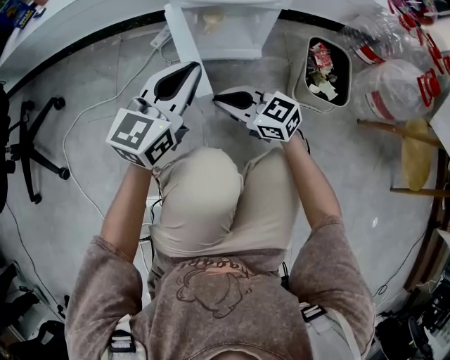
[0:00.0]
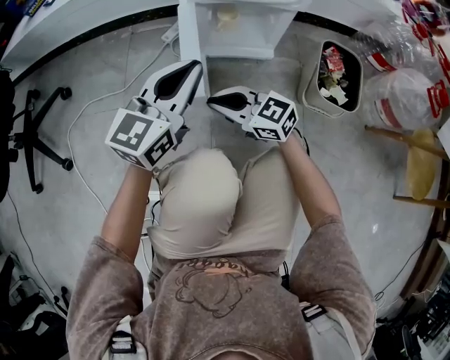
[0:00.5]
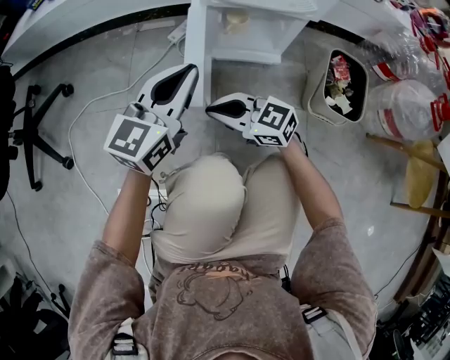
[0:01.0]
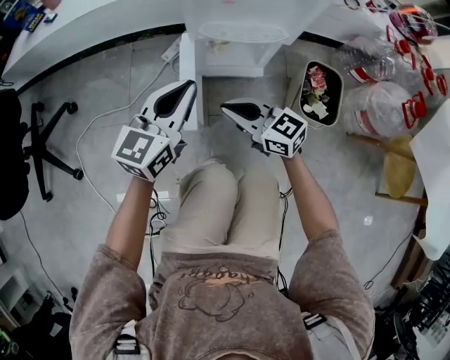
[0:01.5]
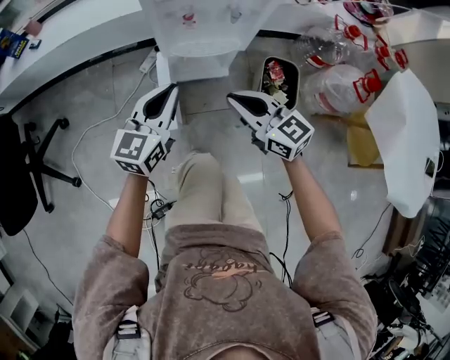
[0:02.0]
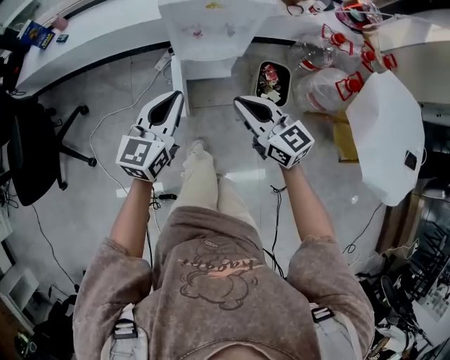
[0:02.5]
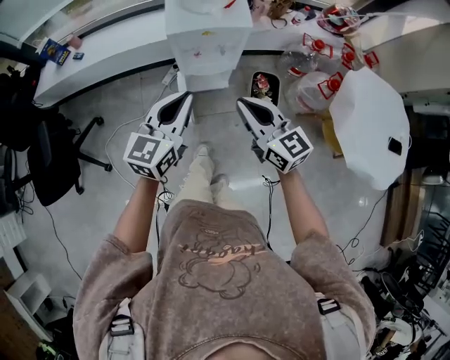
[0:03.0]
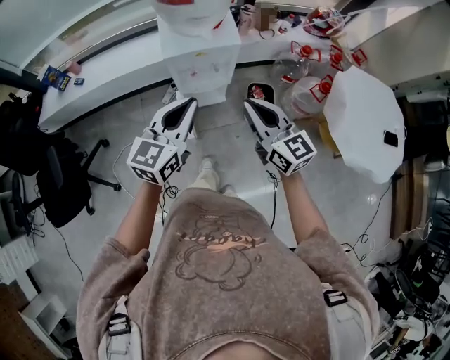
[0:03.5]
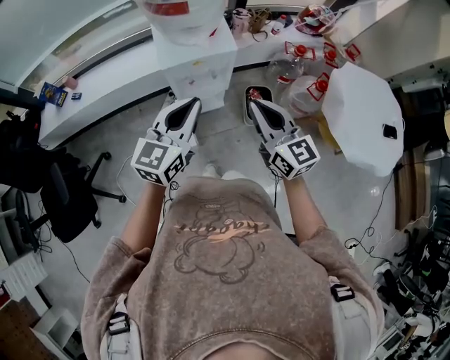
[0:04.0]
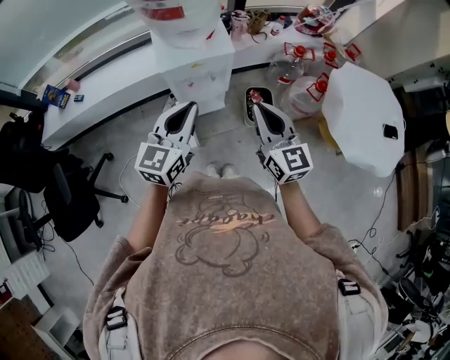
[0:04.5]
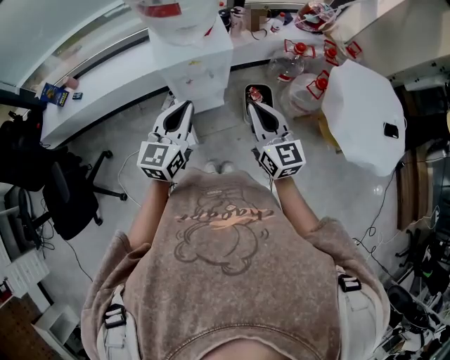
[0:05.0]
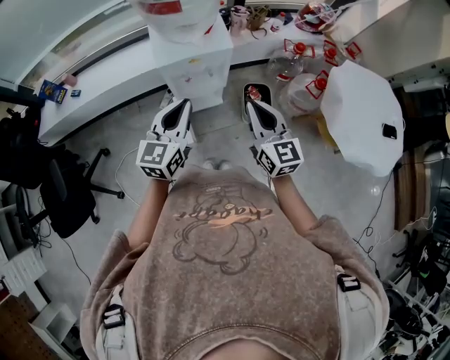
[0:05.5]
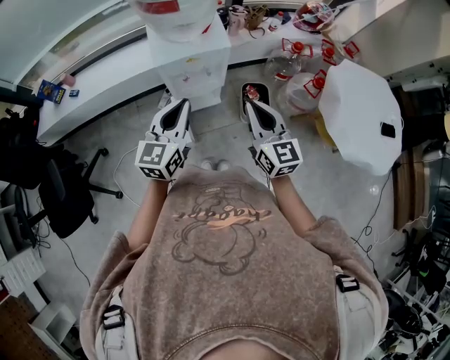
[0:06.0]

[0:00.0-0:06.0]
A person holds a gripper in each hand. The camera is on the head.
0:00.0 to 0:02.0: The right gripper is displaced upward by roughly 30 cm, and rotates roughly 20 degrees. The left gripper shifts some 15 cm upward.
0:02.0 to 0:04.0: Both grippers move upward, roughly 40 cm. The right gripper changes its angle by approximately 30 degrees.
0:04.0 to 0:06.0: The grippers stay close to where they were, moving slightly.

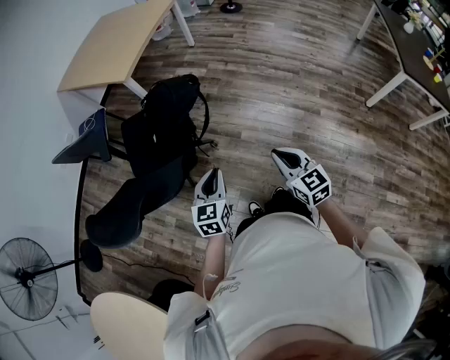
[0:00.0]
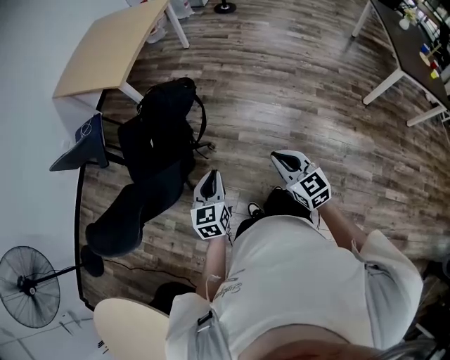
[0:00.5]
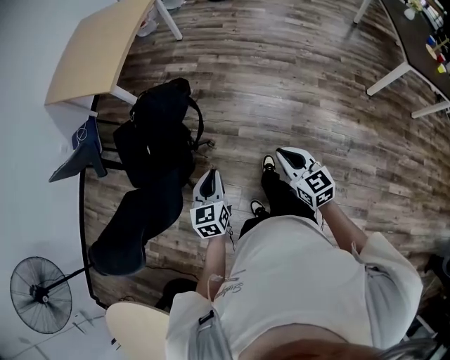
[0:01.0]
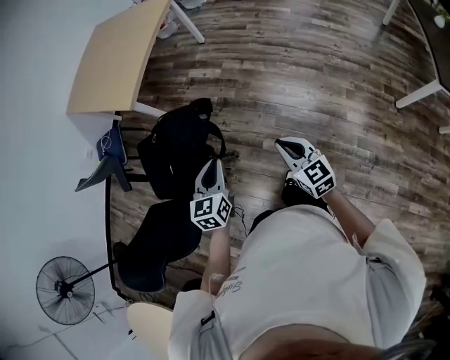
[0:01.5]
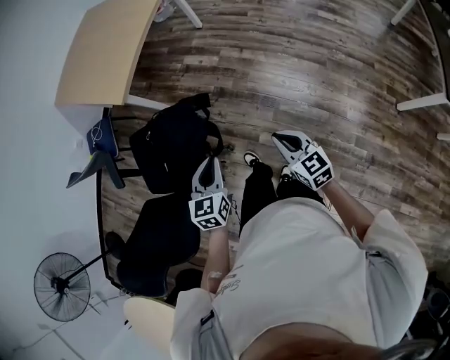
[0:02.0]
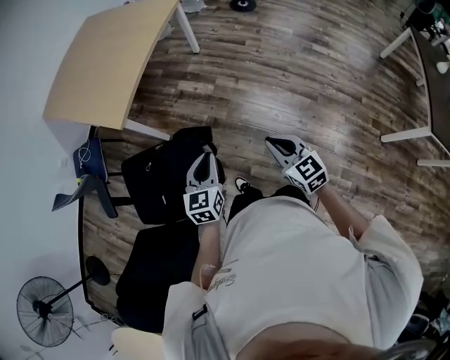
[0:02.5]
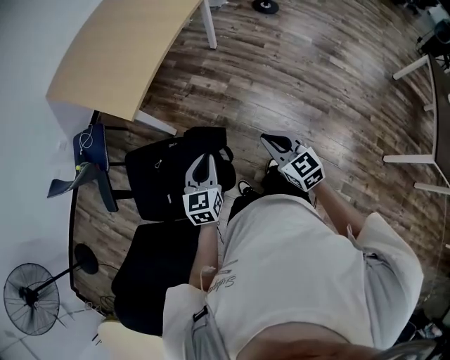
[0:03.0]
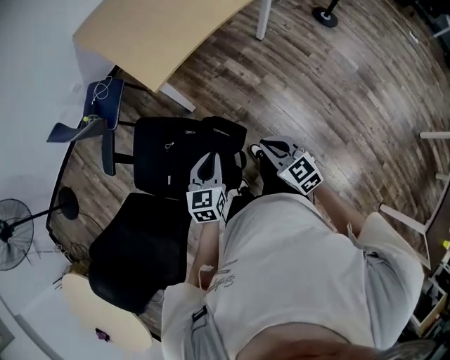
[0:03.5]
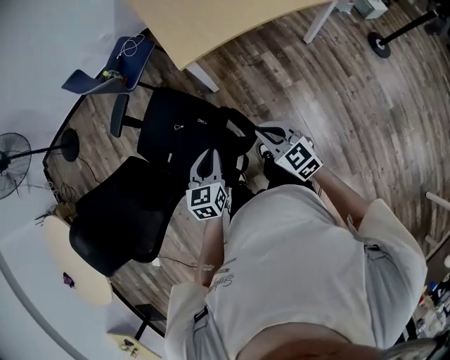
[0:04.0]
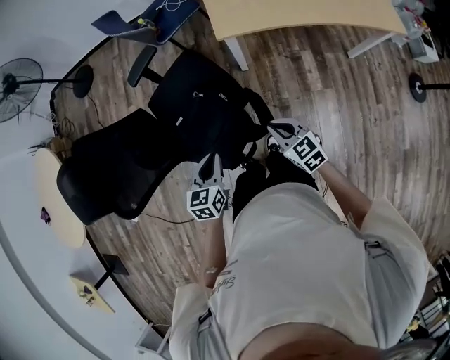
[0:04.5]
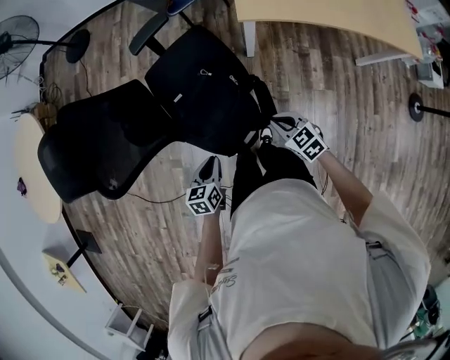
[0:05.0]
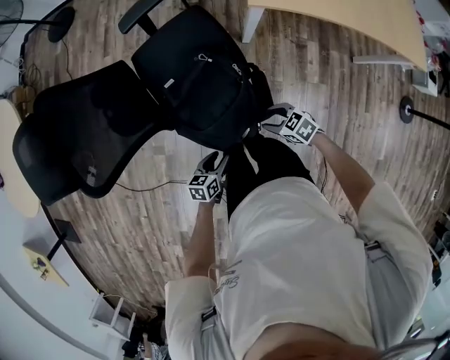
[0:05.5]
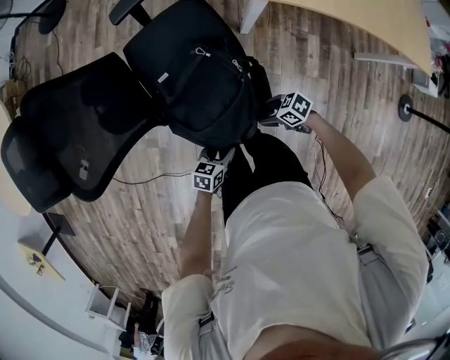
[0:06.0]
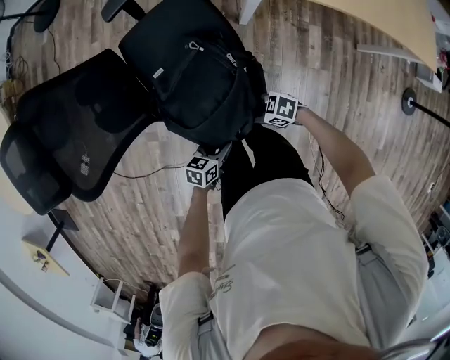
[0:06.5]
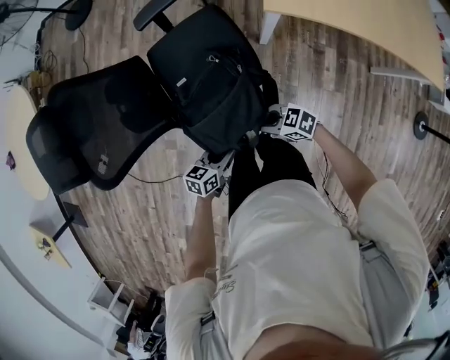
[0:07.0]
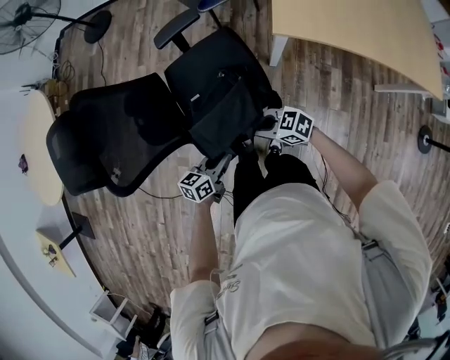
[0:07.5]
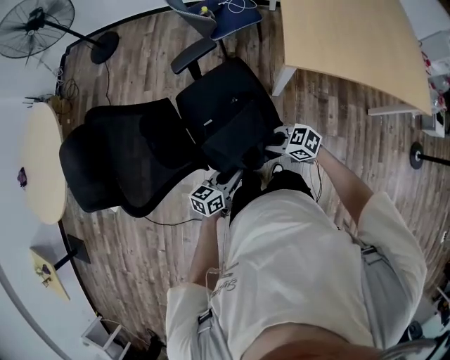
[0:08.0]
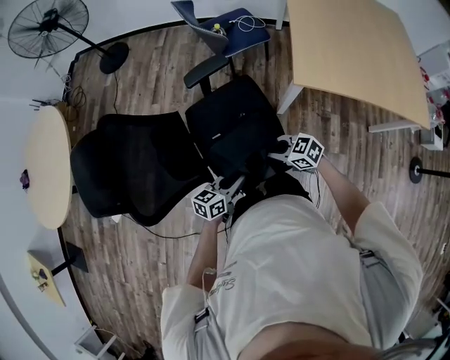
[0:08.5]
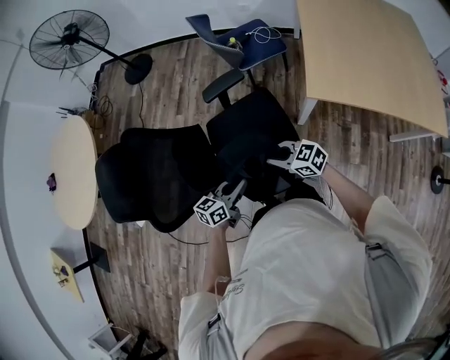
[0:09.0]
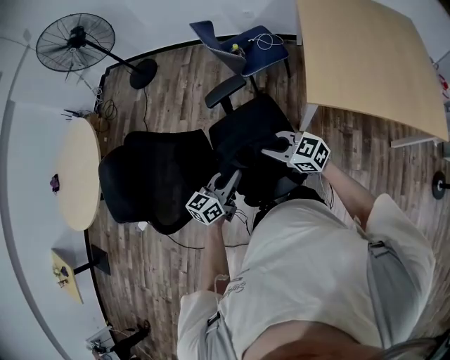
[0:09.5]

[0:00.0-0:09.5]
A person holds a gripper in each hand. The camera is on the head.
0:00.0 to 0:02.0: Both grippers travel together forward, about 35 cm.
0:02.0 to 0:04.0: The left gripper shifts by about 30 cm, and swivels approximately 40 degrees. Meanwhile the right gripper ends up approximately 50 cm from where it was, and rotates about 60 degrees.
0:04.0 to 0:05.5: The grippers both shift downward by about 20 cm. The left gripper changes its angle by roughly 40 degrees, and opens; the right gripper swivels some 50 degrees, and opens up.
0:05.5 to 0:07.5: The right gripper ends up some 15 cm from where it was, changes its angle by about 20 degrees, and closes up; the left gripper ends up about 15 cm from where it was, and closes its fingers.
0:07.5 to 0:09.5: Both grippers travel together upward, roughly 15 cm. The right gripper rotates about 20 degrees. Meanwhile the left gripper turns by approximately 20 degrees.

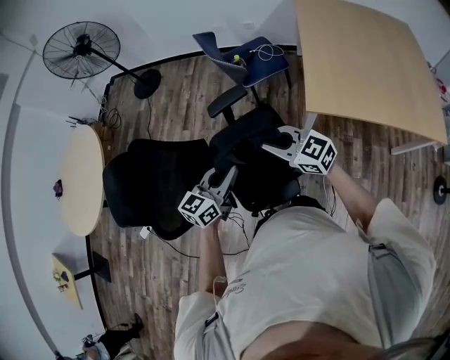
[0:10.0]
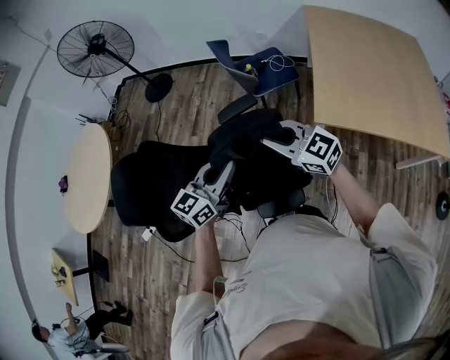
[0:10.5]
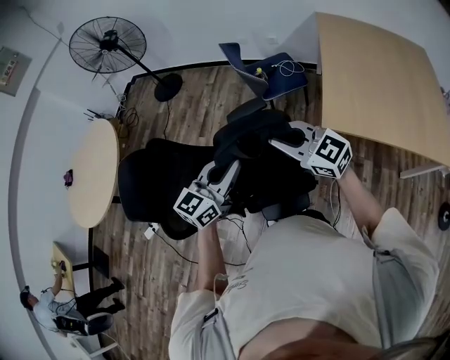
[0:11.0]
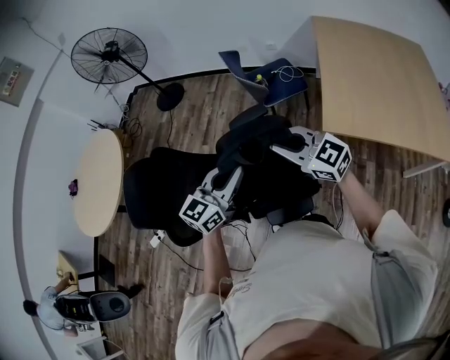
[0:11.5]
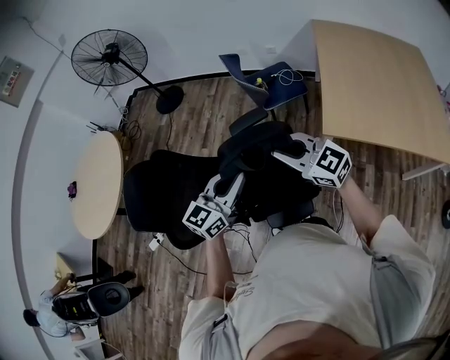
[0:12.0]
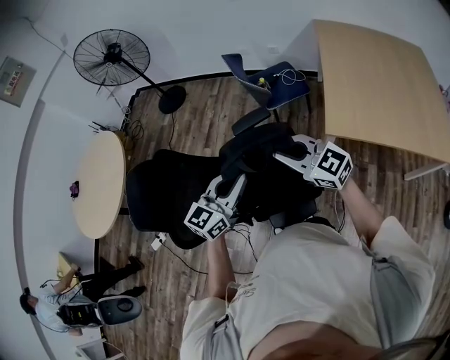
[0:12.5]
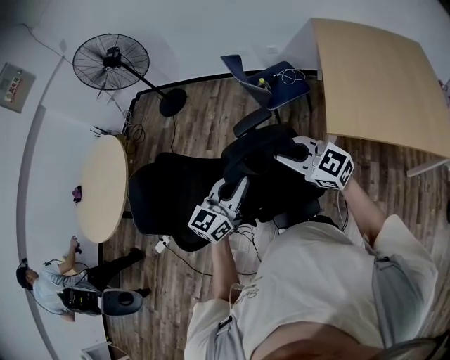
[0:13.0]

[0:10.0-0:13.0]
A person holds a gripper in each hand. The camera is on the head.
0:10.0 to 0:11.5: Both grippers move upward, approximately 10 cm.
0:11.5 to 0:13.0: The grippers make only small movements.

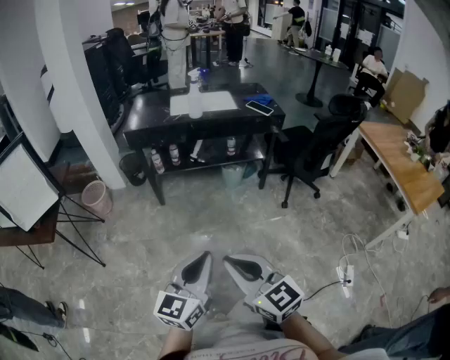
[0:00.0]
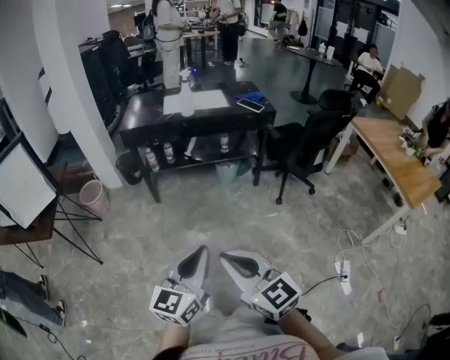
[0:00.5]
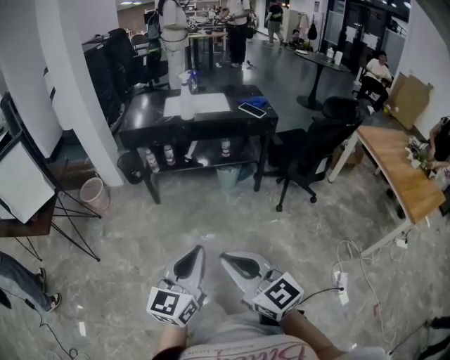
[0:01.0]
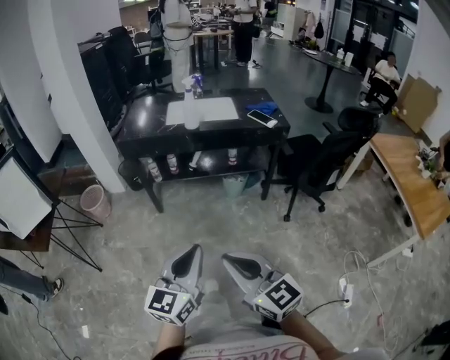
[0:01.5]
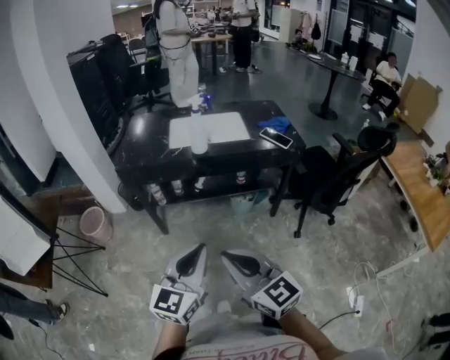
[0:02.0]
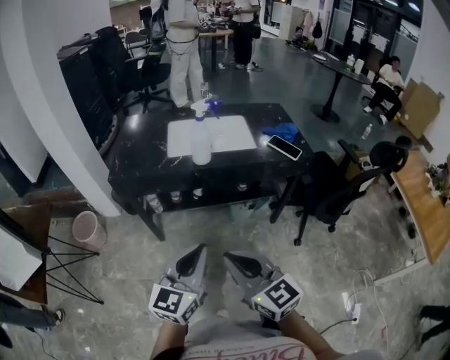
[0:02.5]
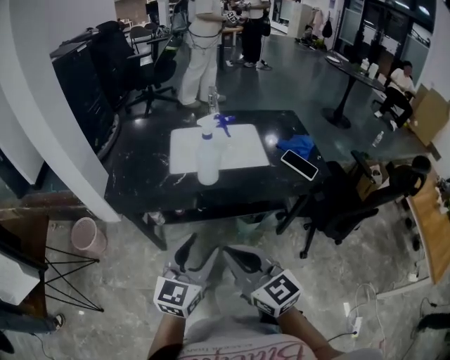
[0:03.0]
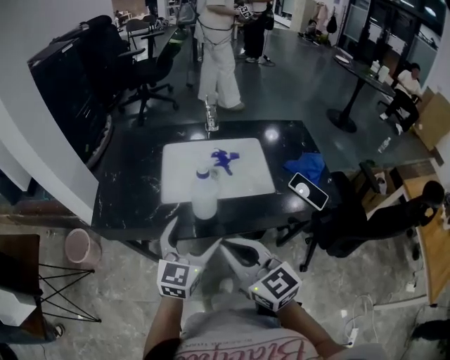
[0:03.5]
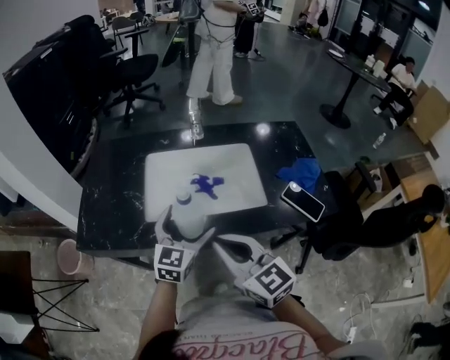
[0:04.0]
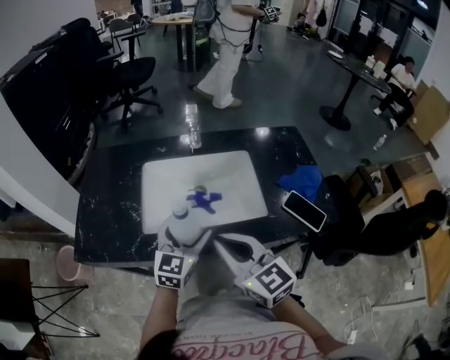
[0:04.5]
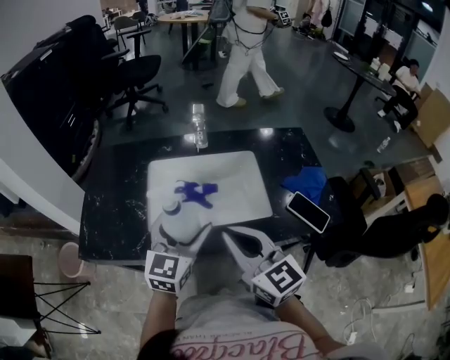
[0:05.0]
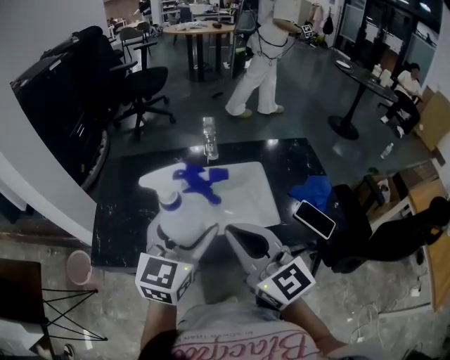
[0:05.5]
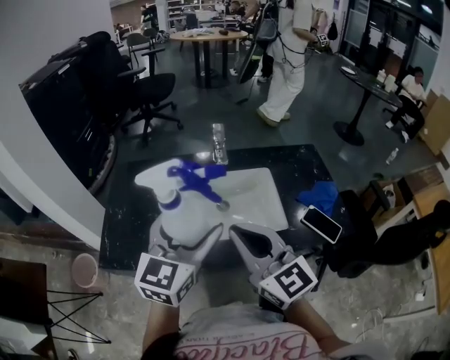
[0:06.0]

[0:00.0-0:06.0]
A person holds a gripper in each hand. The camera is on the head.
0:00.0 to 0:02.0: Both grippers move forward, about 25 cm.
0:02.0 to 0:04.0: The grippers both shift forward by about 40 cm. The left gripper opens its fingers.
0:04.0 to 0:06.0: The left gripper goes approximately 15 cm upward, while the right gripper heads upward and forward, covering some 10 cm.

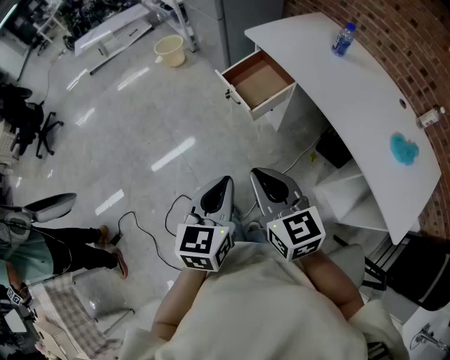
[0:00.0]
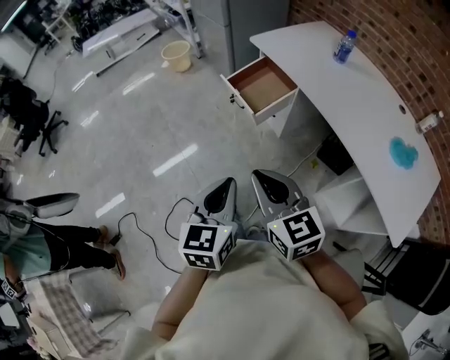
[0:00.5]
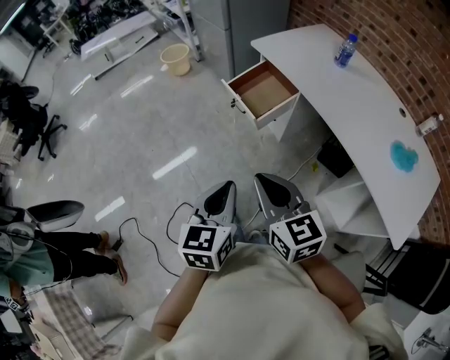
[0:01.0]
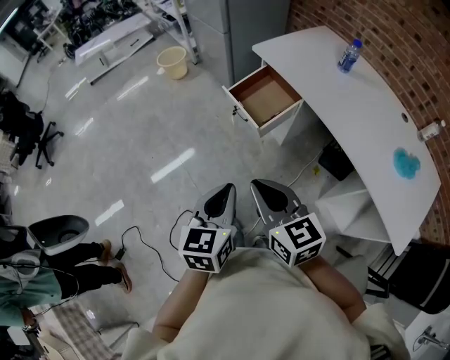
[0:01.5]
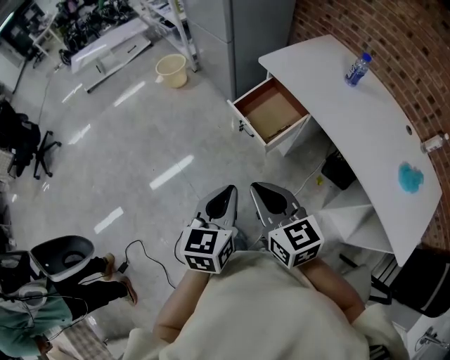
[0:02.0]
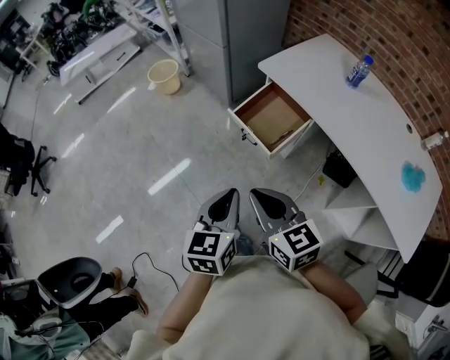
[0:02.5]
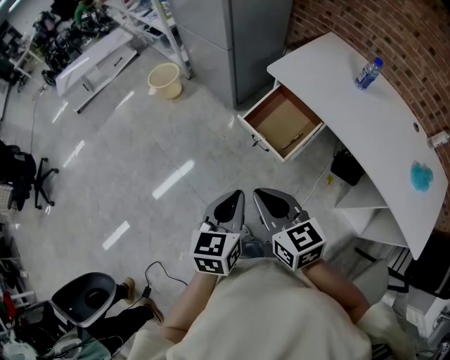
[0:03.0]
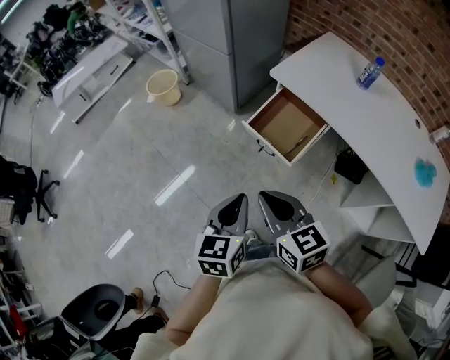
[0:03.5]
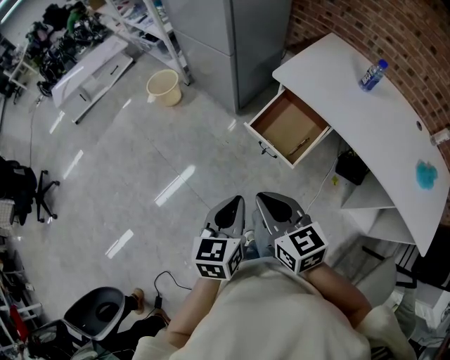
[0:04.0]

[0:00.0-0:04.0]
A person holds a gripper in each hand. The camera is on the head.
0:00.0 to 0:02.0: The grippers both shift forward and to the left by some 15 cm.
0:02.0 to 0:04.0: Both grippers move forward and to the left, about 20 cm.
